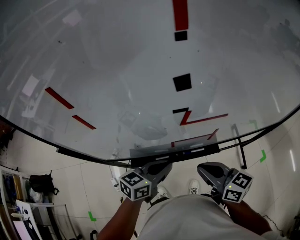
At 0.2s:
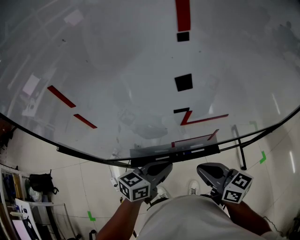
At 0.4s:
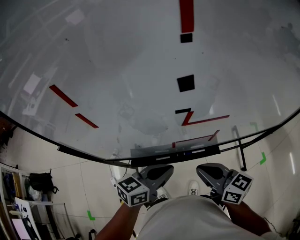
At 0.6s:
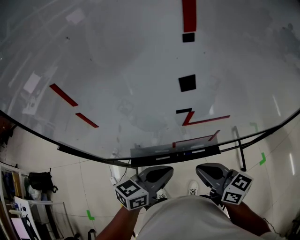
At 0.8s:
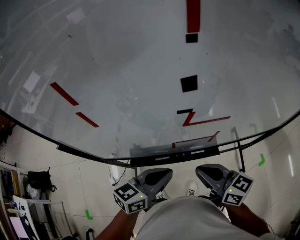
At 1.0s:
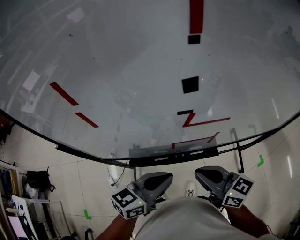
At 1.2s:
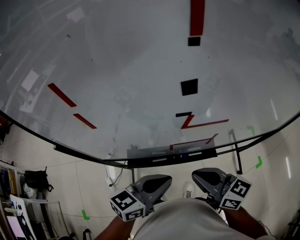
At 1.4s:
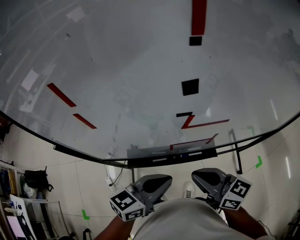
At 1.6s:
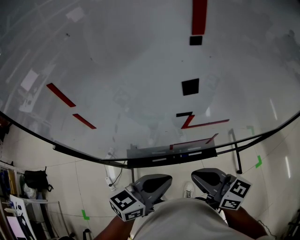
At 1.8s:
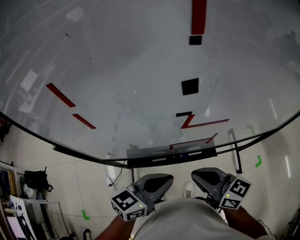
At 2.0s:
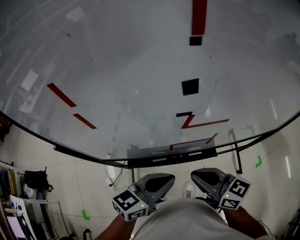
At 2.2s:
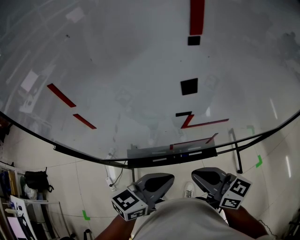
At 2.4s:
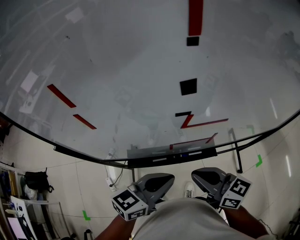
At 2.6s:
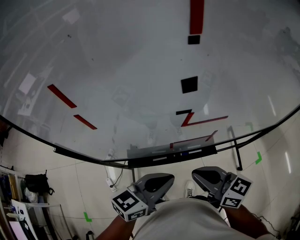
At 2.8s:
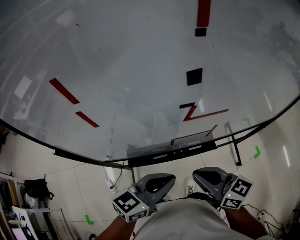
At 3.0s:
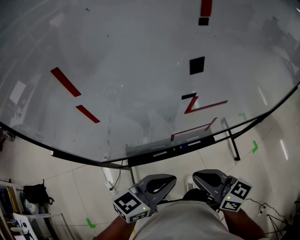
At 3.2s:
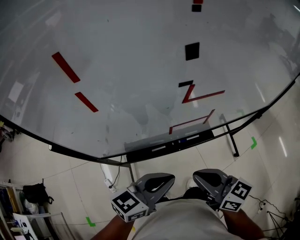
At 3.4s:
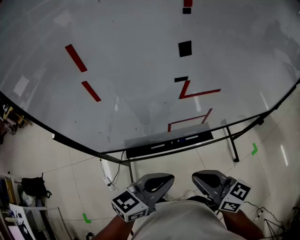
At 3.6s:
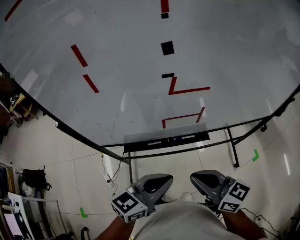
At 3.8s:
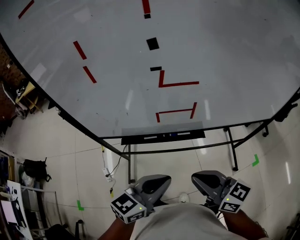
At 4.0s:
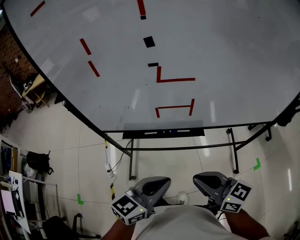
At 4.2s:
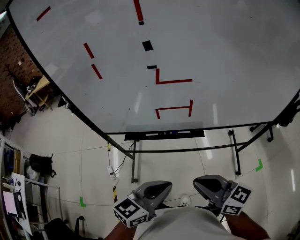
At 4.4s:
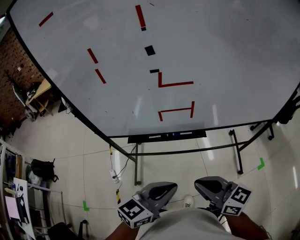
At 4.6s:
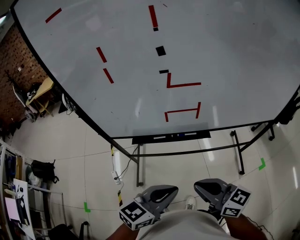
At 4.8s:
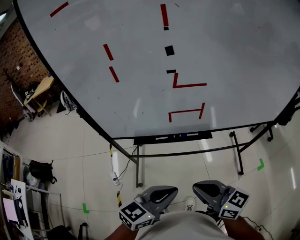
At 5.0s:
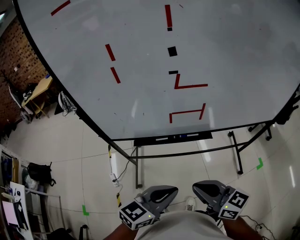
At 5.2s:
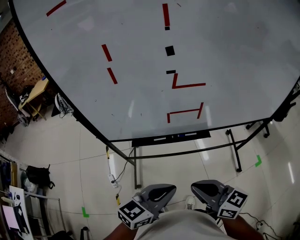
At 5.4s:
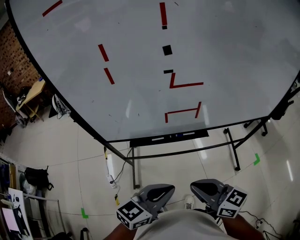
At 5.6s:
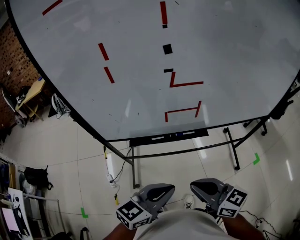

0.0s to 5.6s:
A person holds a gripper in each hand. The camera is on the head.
0.0s to 1.4s: The left gripper travels upward by approximately 5 cm.
1.4s to 2.8s: There are only small adjustments of the grippers.
2.8s to 4.2s: The two grippers go roughly 20 cm backward and to the right.
4.2s to 5.6s: Both grippers travel together to the left, approximately 5 cm.

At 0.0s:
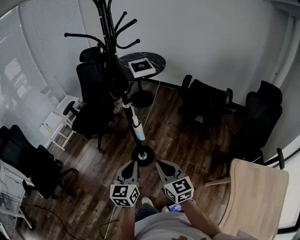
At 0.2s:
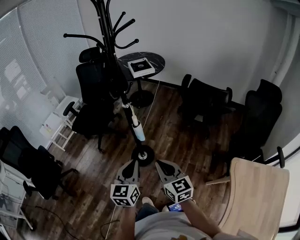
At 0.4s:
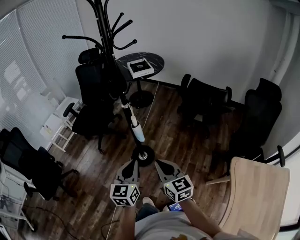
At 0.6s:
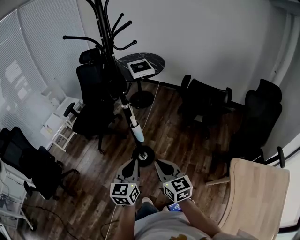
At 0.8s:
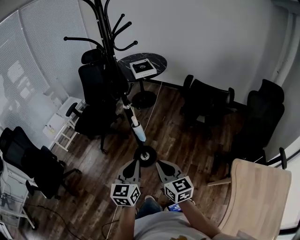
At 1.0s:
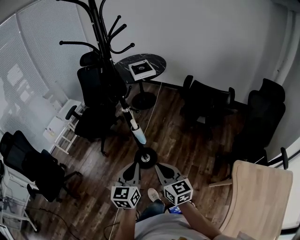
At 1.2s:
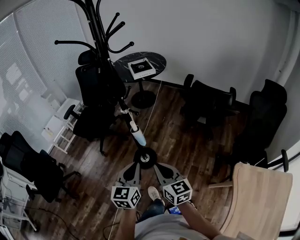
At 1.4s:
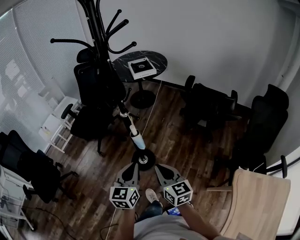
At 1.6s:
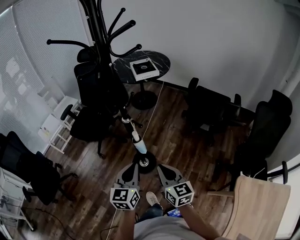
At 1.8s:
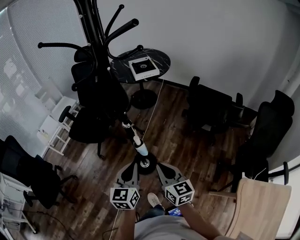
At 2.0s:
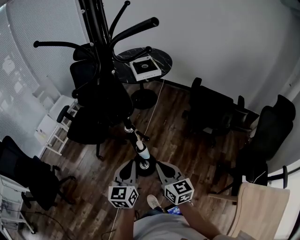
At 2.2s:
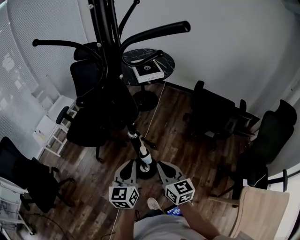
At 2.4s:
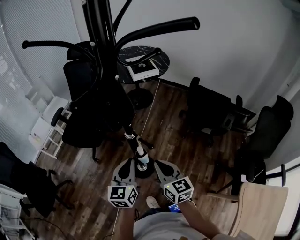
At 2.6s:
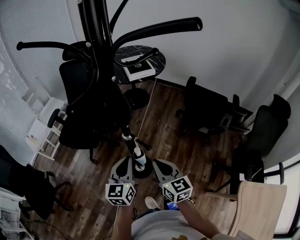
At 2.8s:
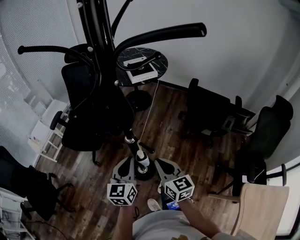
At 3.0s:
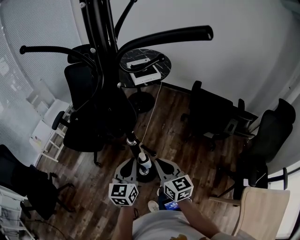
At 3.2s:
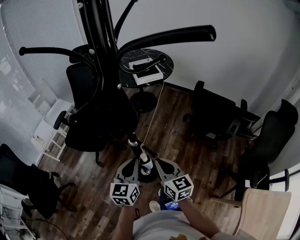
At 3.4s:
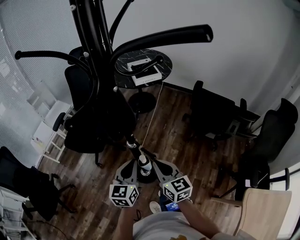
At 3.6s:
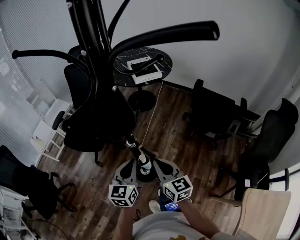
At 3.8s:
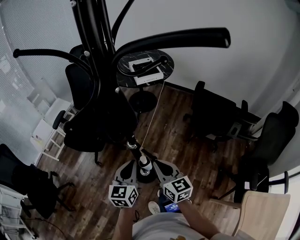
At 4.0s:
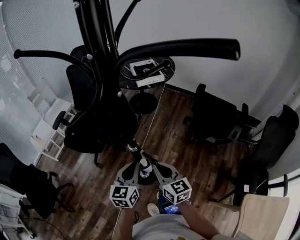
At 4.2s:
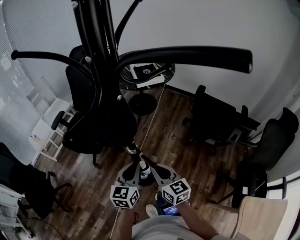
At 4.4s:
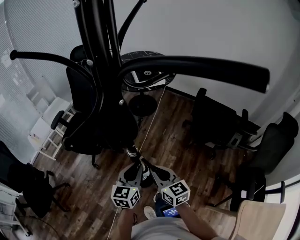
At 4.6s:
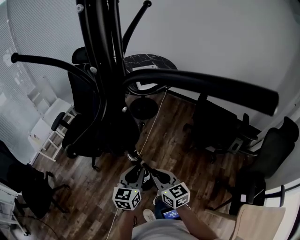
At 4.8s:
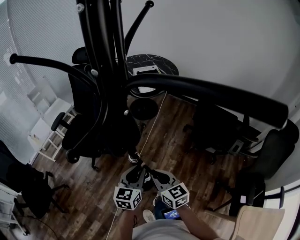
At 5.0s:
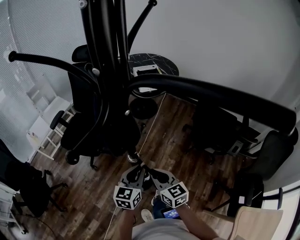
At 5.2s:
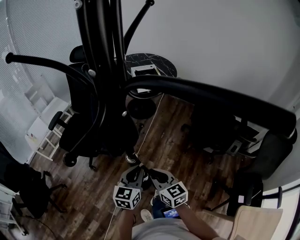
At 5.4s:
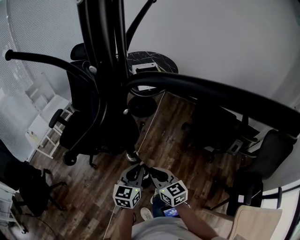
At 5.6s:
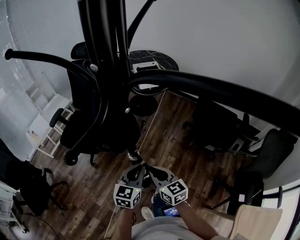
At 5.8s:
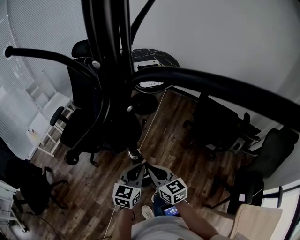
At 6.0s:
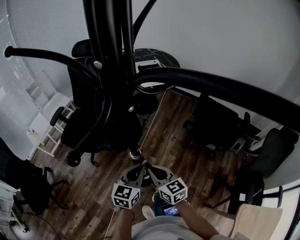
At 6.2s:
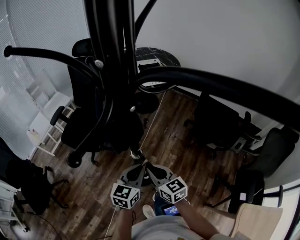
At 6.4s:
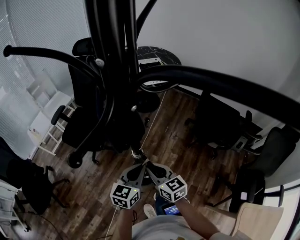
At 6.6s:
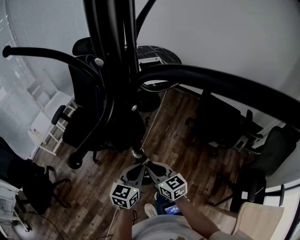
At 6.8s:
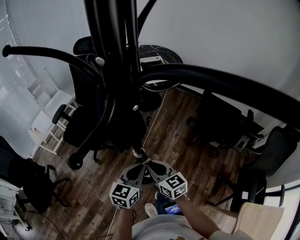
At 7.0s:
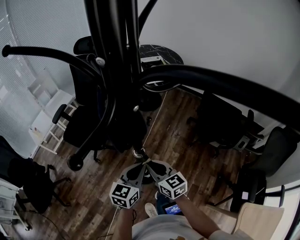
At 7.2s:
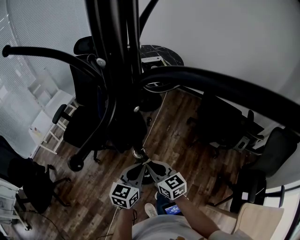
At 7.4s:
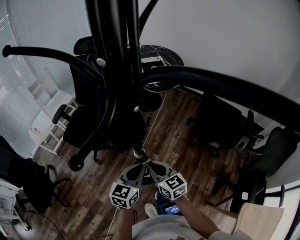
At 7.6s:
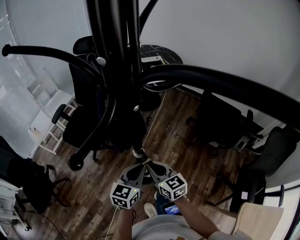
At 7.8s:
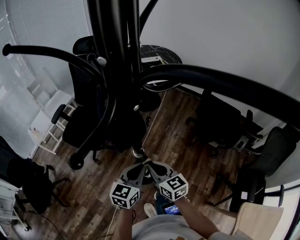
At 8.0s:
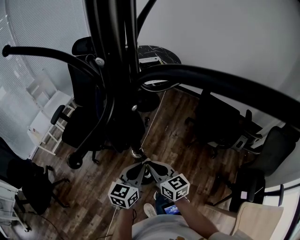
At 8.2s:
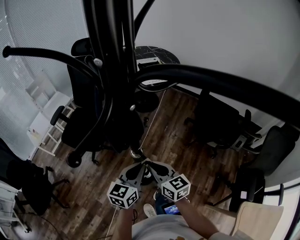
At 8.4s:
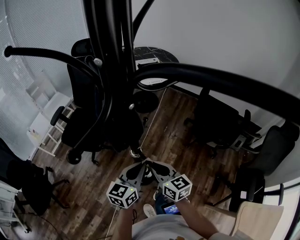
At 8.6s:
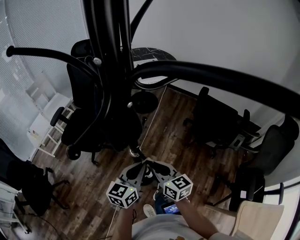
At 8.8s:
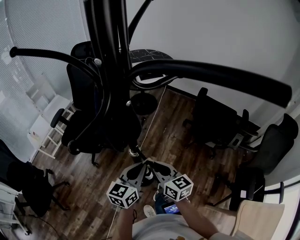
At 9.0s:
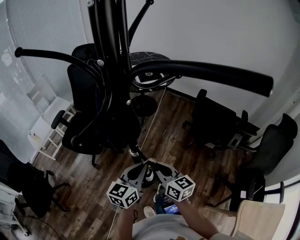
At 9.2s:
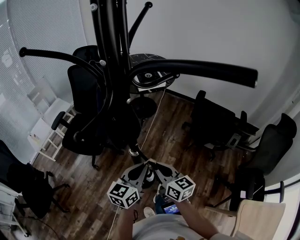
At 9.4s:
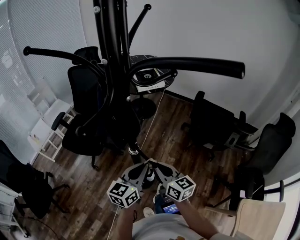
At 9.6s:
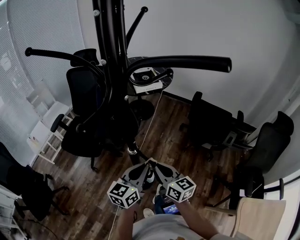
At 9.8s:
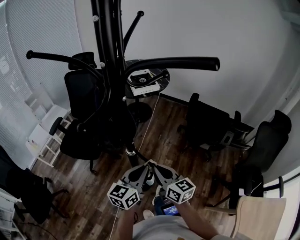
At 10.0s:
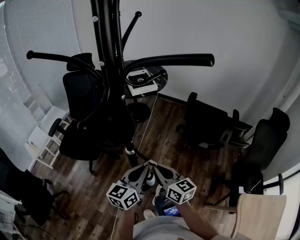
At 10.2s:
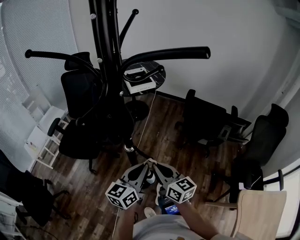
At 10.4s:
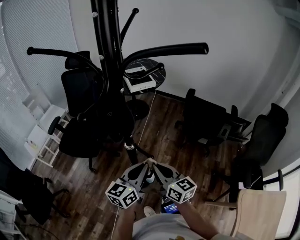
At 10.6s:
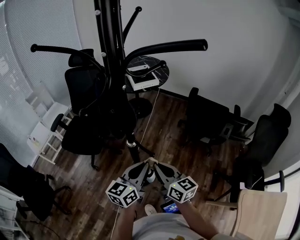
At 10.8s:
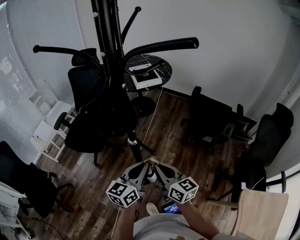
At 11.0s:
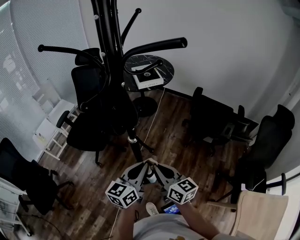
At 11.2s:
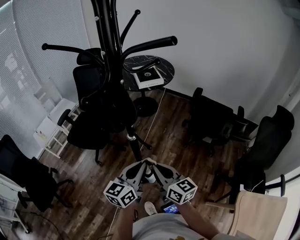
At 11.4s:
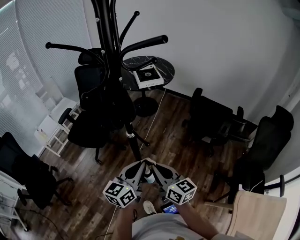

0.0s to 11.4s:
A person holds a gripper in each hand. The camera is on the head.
0.0s to 1.4s: The two grippers go about 10 cm forward.
1.4s to 2.8s: The two grippers go roughly 20 cm forward.
2.8s to 4.2s: The right gripper ends up some 5 cm from where it was. The left gripper shifts by roughly 5 cm.
4.2s to 5.6s: The grippers make only small movements.
5.6s to 8.6s: The grippers stay close to where they were, moving slightly.
8.6s to 10.0s: The left gripper shifts by about 5 cm, while the right gripper is displaced backward by some 5 cm.
10.0s to 11.4s: The grippers both shift backward by approximately 10 cm.

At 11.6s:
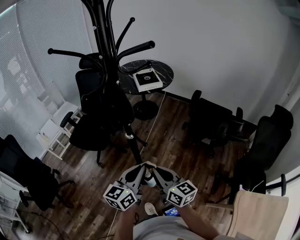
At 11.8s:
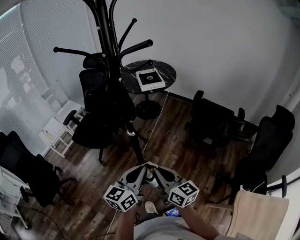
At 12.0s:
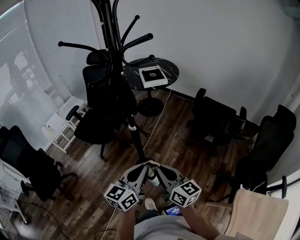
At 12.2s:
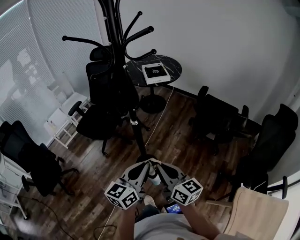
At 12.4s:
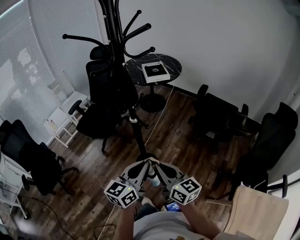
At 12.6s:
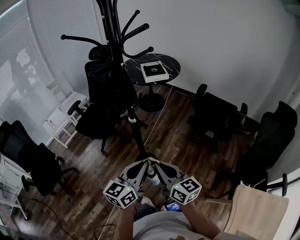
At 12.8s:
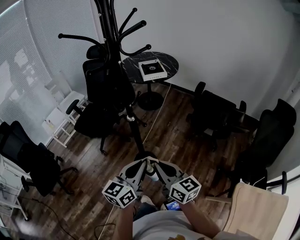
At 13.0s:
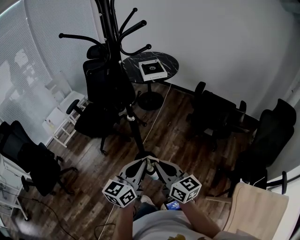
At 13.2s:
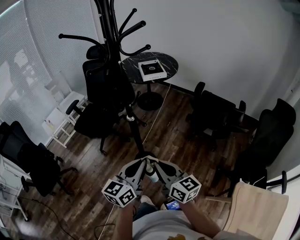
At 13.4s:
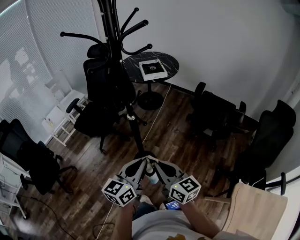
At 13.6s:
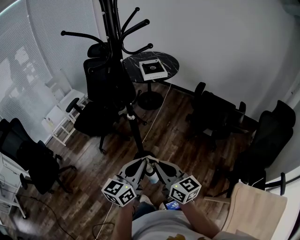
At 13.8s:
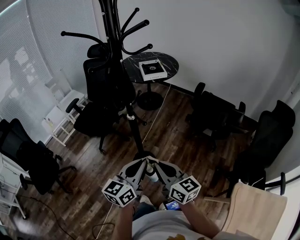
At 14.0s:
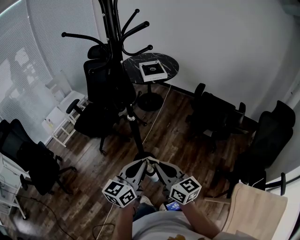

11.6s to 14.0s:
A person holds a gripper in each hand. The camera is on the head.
11.6s to 12.8s: Both grippers travel together backward, roughly 5 cm.
12.8s to 14.0s: Both grippers stay put.

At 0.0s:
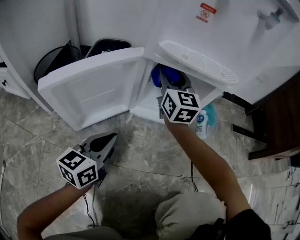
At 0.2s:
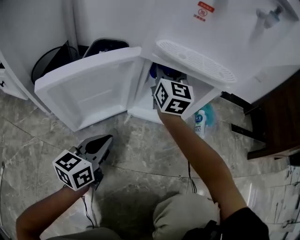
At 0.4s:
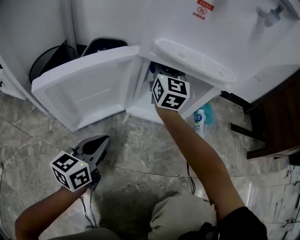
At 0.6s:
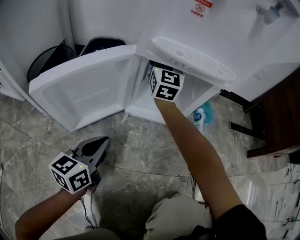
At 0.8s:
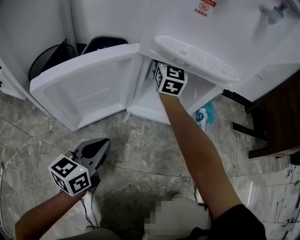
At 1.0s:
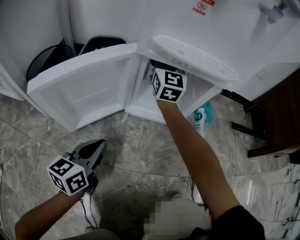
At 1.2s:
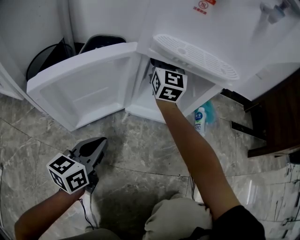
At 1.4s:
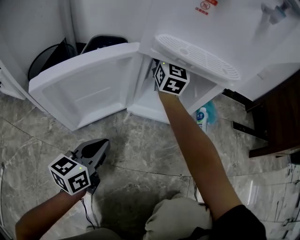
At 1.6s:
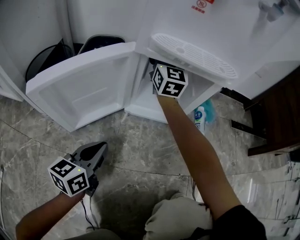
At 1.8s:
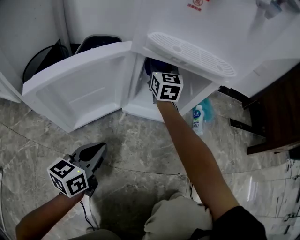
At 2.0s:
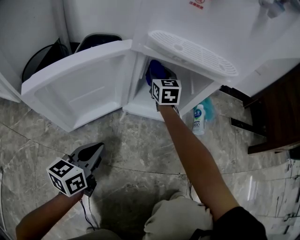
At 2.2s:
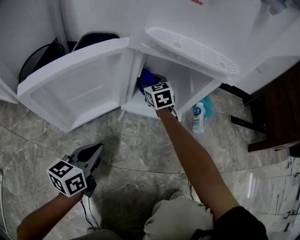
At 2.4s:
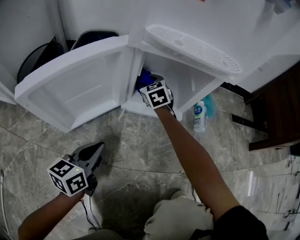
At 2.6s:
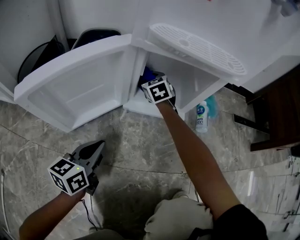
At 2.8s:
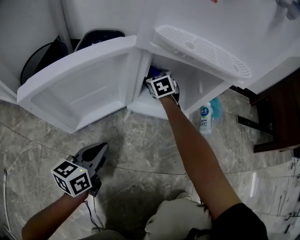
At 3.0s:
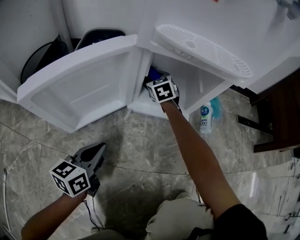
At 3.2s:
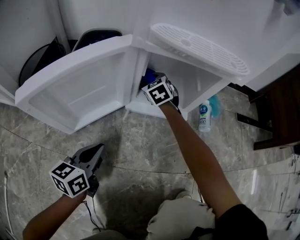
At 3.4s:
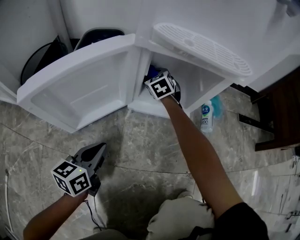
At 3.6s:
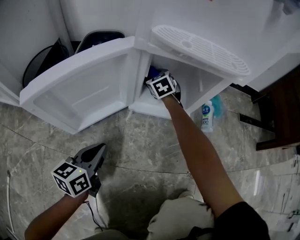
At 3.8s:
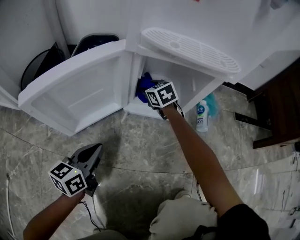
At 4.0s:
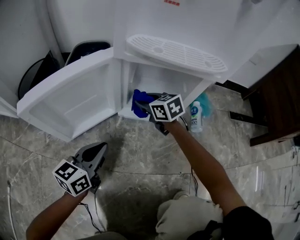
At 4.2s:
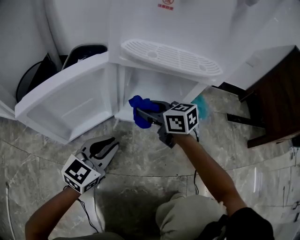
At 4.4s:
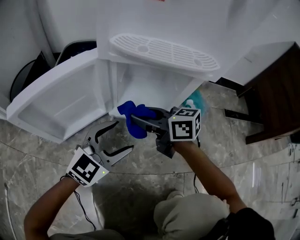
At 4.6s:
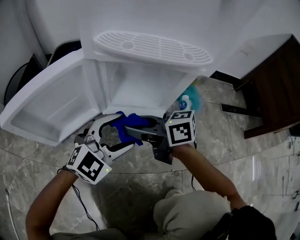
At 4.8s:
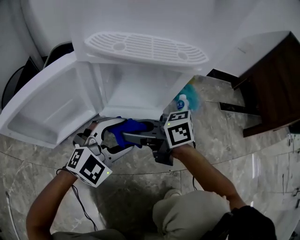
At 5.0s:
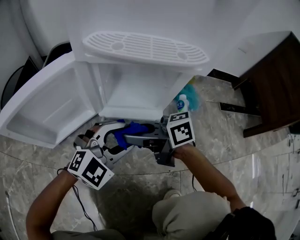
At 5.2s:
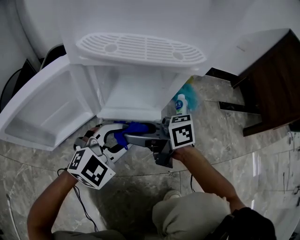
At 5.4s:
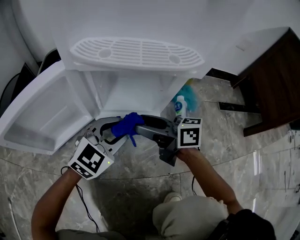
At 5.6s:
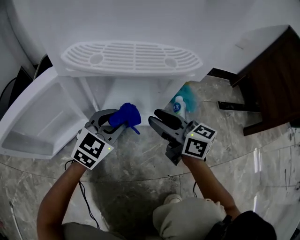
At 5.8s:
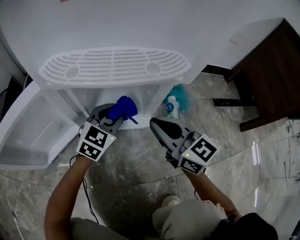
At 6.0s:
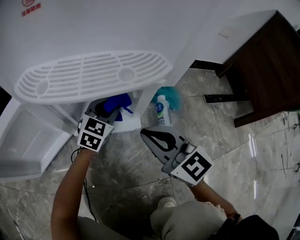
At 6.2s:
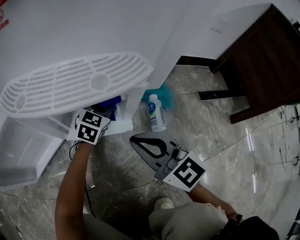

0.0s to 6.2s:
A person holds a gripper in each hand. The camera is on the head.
0.0s to 1.6s: The right gripper travels forward by roughly 10 cm.
1.6s to 3.2s: The right gripper goes about 25 cm downward, and angles its fingers downward, by approximately 50 degrees.
3.2s to 4.6s: The left gripper shifts by roughly 20 cm, twists approximately 60 degrees clockwise, seen from behind, and opens its fingers; the right gripper shifts by some 25 cm, and changes its angle by roughly 70 degrees.
4.6s to 6.2s: The left gripper ends up roughly 25 cm from where it was, rotates about 30 degrees, and closes, while the right gripper changes place by approximately 15 cm, changes its angle by roughly 50 degrees, and closes up.
